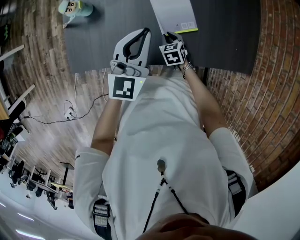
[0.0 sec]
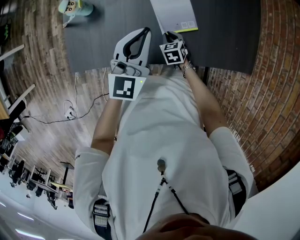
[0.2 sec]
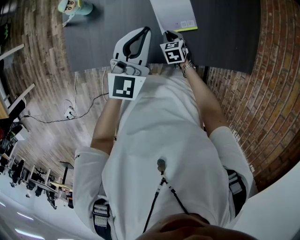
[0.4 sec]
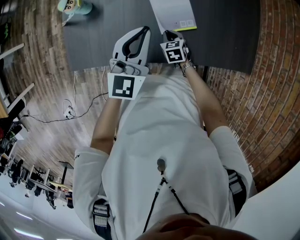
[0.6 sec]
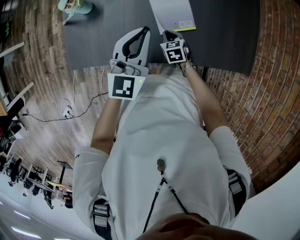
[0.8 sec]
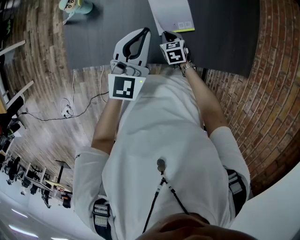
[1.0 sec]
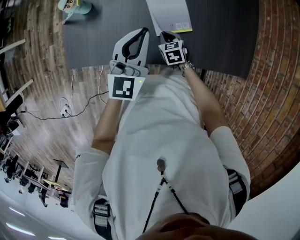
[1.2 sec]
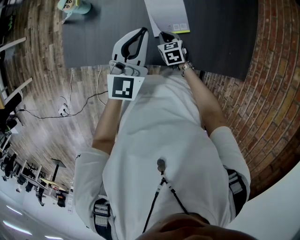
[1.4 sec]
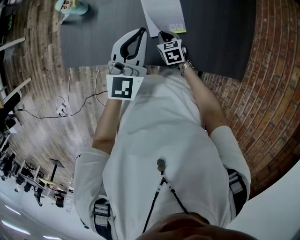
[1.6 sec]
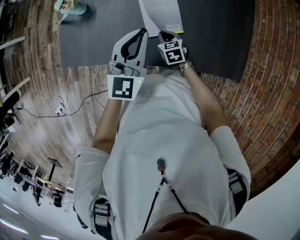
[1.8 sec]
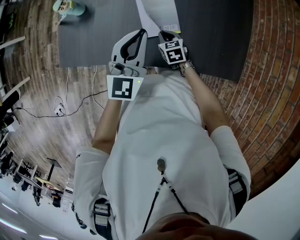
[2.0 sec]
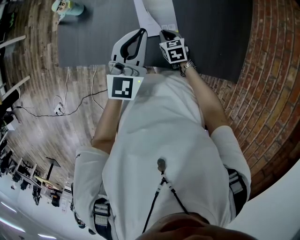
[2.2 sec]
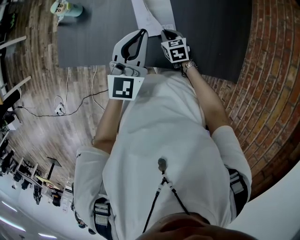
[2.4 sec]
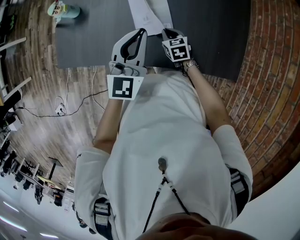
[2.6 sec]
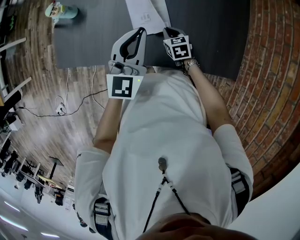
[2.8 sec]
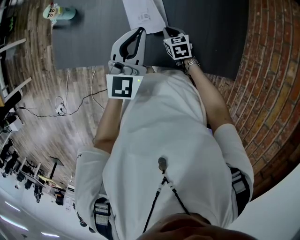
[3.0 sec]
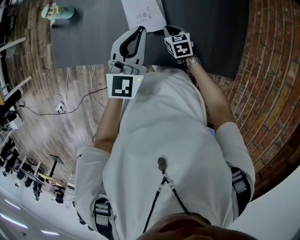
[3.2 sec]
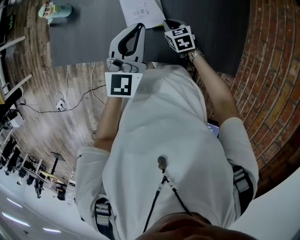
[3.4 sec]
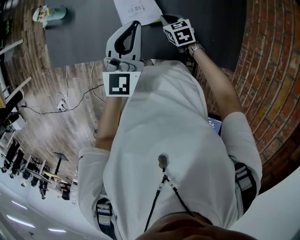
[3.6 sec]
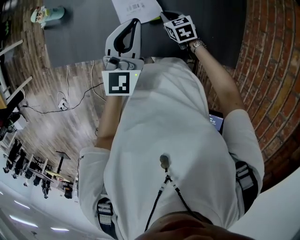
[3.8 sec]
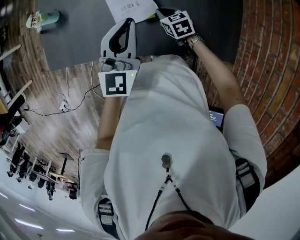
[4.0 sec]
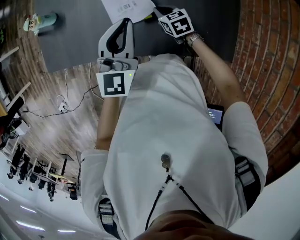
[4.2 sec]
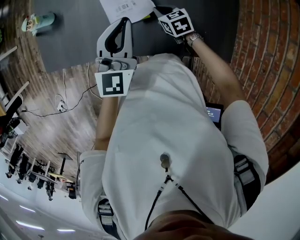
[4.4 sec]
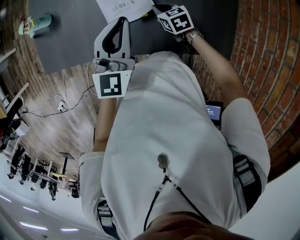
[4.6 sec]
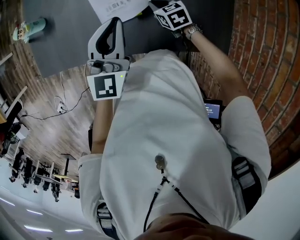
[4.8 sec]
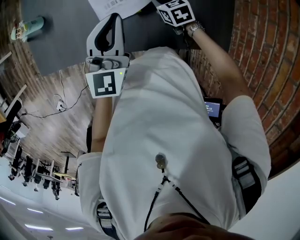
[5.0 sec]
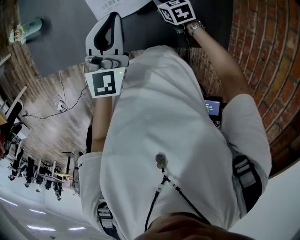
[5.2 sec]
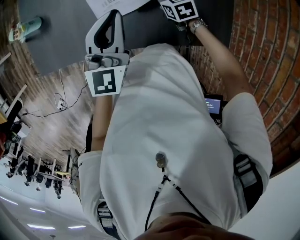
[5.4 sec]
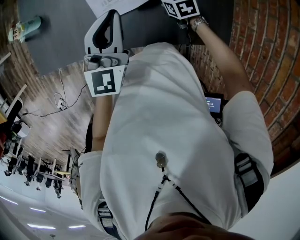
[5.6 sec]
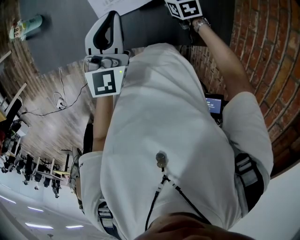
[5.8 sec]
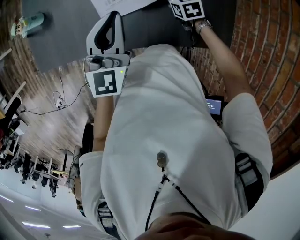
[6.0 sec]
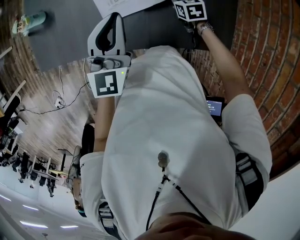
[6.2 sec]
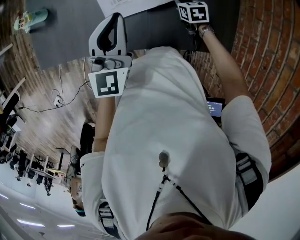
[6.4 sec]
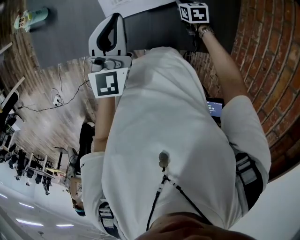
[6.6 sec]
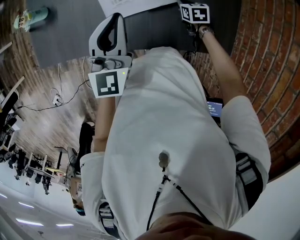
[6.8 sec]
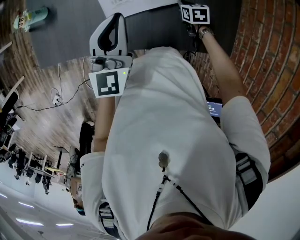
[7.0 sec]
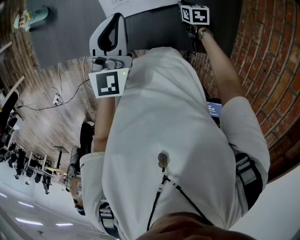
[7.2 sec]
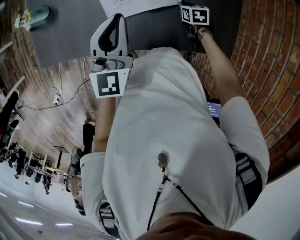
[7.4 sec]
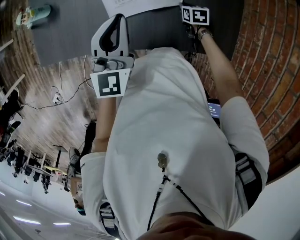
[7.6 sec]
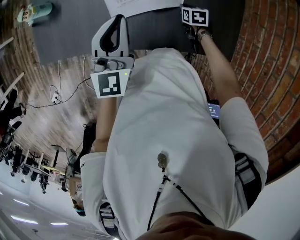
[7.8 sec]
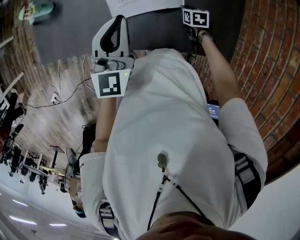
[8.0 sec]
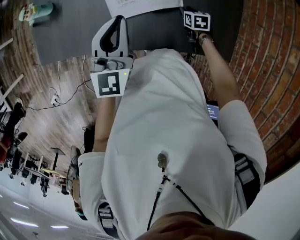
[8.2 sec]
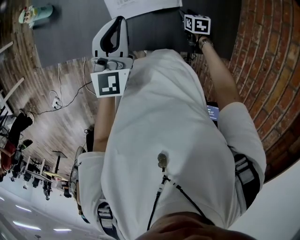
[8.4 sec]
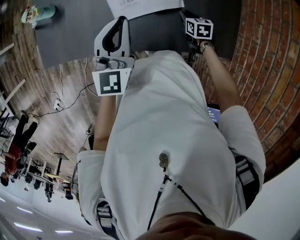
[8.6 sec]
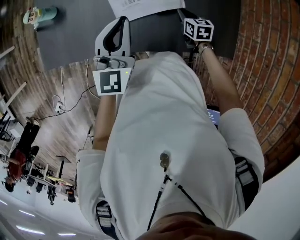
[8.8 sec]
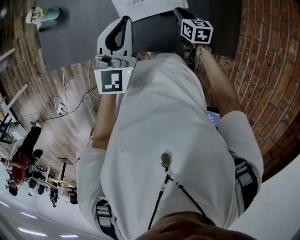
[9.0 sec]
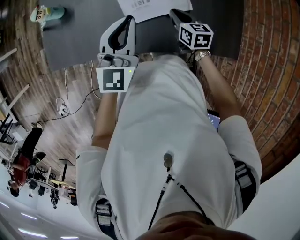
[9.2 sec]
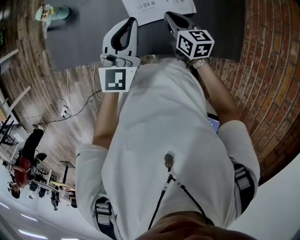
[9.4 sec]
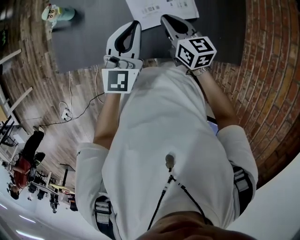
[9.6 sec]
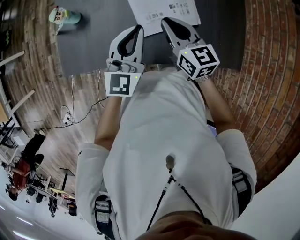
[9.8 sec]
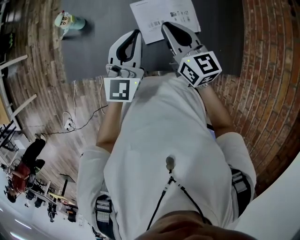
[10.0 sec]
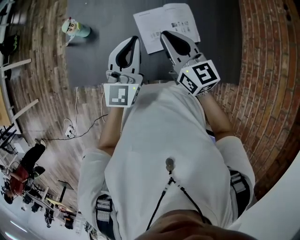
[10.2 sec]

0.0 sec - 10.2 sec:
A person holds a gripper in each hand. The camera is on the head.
0.0 sec - 1.4 sec: There are only small adjustments of the grippers.
1.4 sec - 3.0 sec: The grippers both shift to the right by some 15 cm.
3.0 sec - 4.4 sec: Both grippers travel together to the right, roughly 5 cm.
4.4 sec - 5.8 sec: The right gripper is displaced to the right by approximately 10 cm.
5.8 sec - 7.2 sec: The right gripper is displaced downward by about 5 cm.
7.2 sec - 8.8 sec: The right gripper goes roughly 10 cm upward and to the left, and opens, then closes once more. The left gripper heads to the left, covering approximately 5 cm.
8.8 sec - 10.2 sec: The right gripper travels upward and to the left by some 40 cm, and tilts its fingers roughly 40 degrees upward; the left gripper goes about 15 cm to the left and upward.

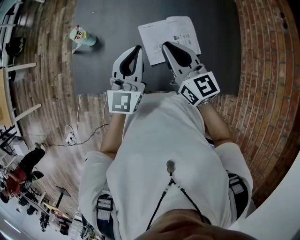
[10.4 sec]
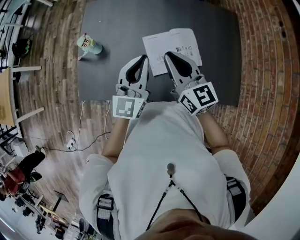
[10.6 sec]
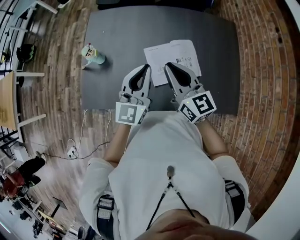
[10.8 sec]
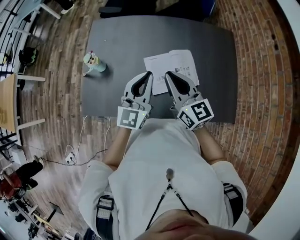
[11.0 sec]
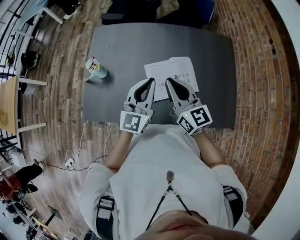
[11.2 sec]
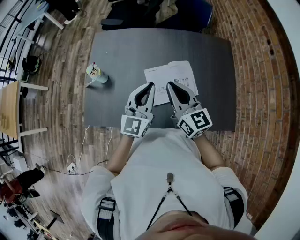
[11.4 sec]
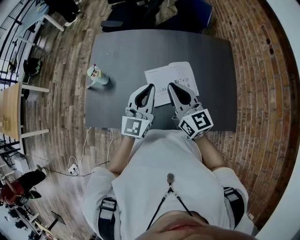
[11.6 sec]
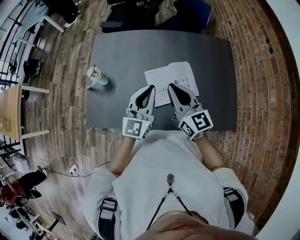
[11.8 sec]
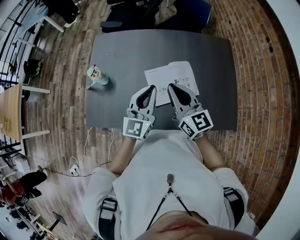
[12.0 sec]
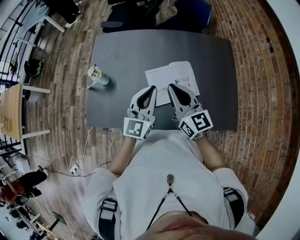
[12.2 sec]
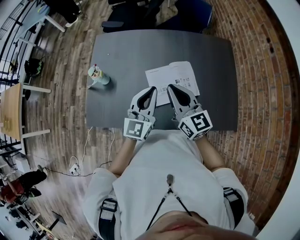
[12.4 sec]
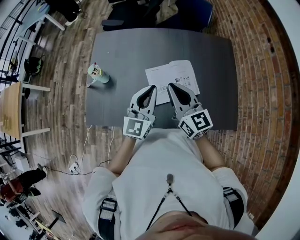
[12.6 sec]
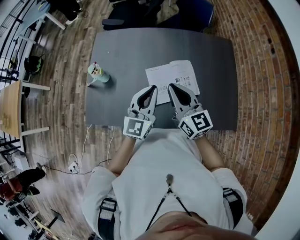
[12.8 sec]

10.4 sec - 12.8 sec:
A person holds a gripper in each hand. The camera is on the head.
10.4 sec - 11.6 sec: The right gripper shifts by roughly 5 cm.
11.6 sec - 12.8 sec: The grippers stay close to where they were, moving slightly.

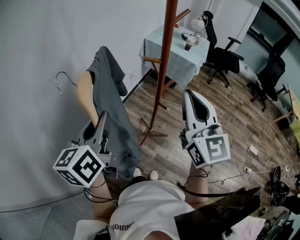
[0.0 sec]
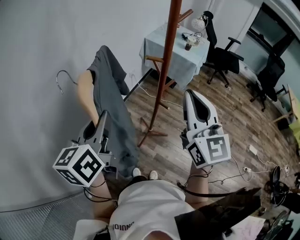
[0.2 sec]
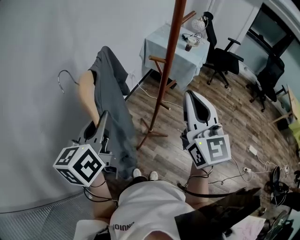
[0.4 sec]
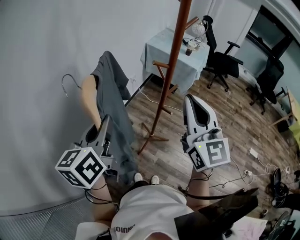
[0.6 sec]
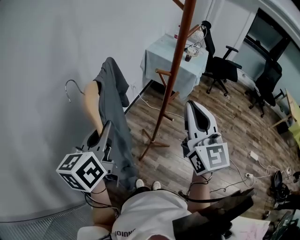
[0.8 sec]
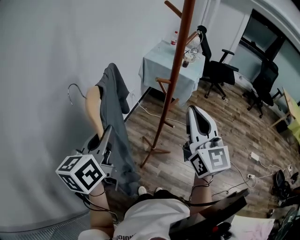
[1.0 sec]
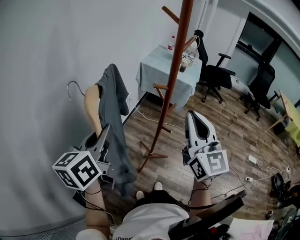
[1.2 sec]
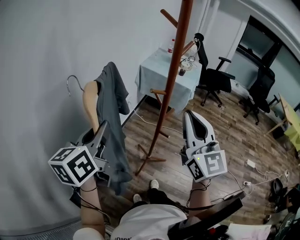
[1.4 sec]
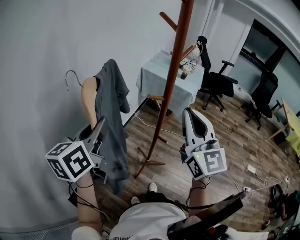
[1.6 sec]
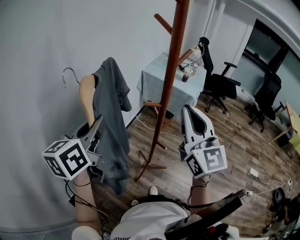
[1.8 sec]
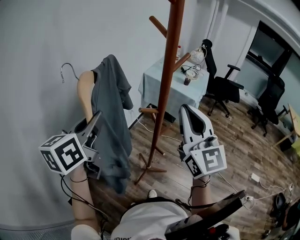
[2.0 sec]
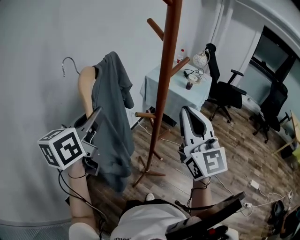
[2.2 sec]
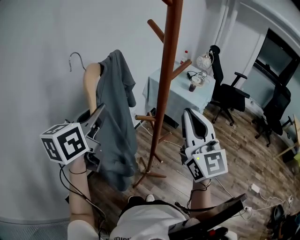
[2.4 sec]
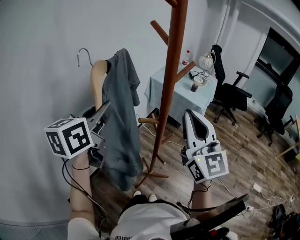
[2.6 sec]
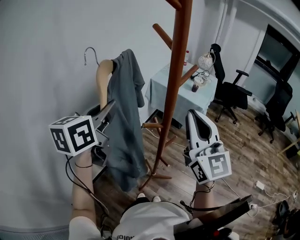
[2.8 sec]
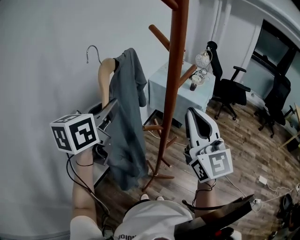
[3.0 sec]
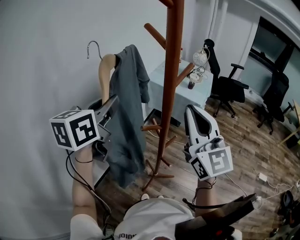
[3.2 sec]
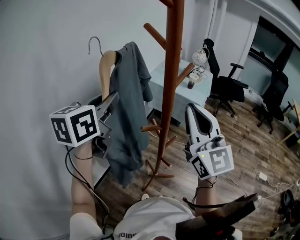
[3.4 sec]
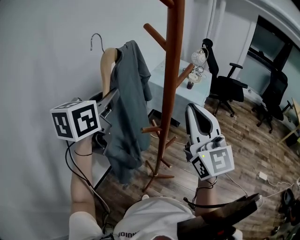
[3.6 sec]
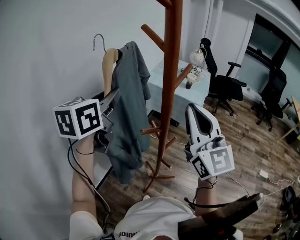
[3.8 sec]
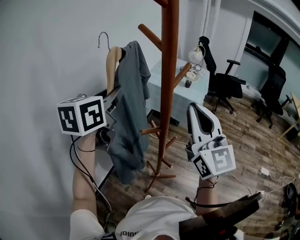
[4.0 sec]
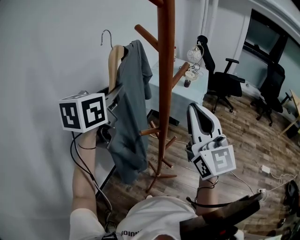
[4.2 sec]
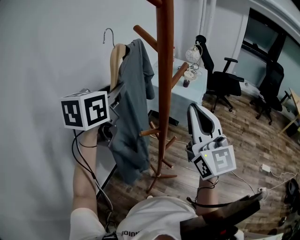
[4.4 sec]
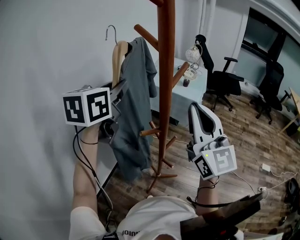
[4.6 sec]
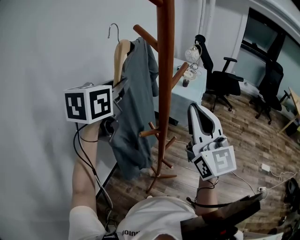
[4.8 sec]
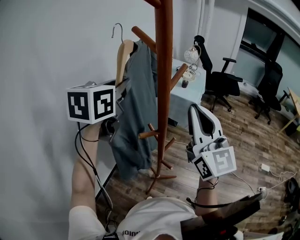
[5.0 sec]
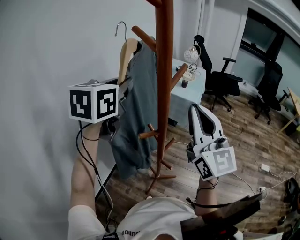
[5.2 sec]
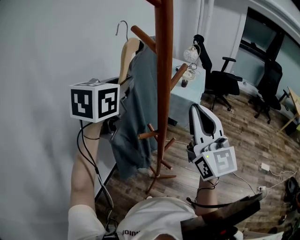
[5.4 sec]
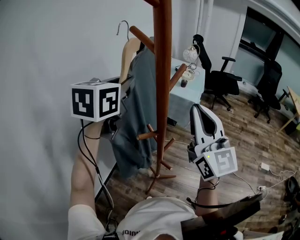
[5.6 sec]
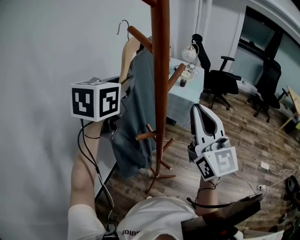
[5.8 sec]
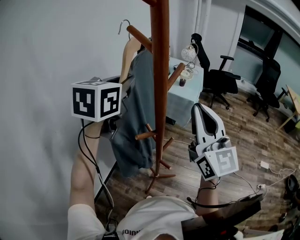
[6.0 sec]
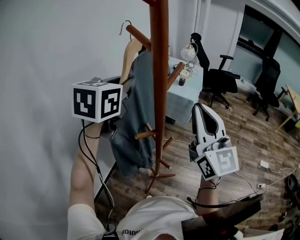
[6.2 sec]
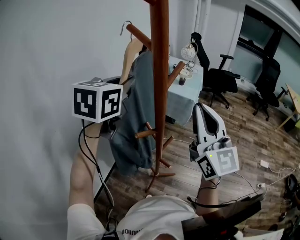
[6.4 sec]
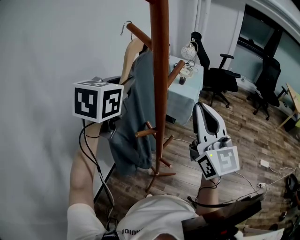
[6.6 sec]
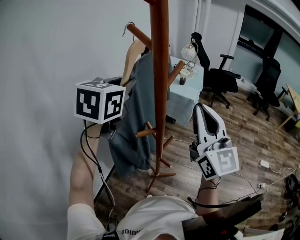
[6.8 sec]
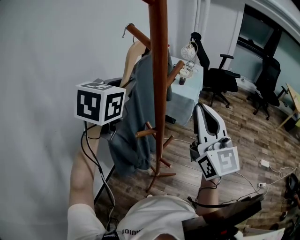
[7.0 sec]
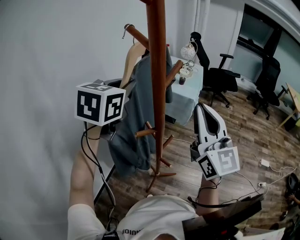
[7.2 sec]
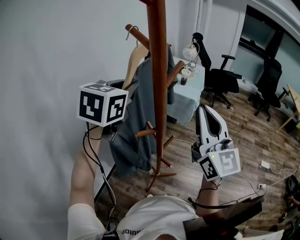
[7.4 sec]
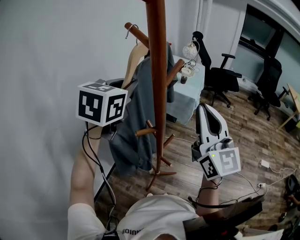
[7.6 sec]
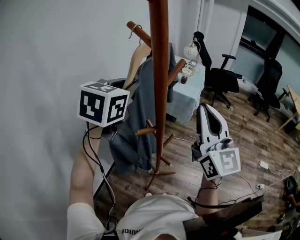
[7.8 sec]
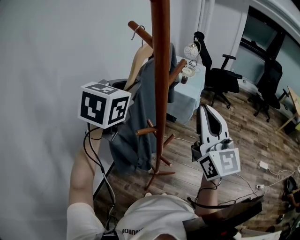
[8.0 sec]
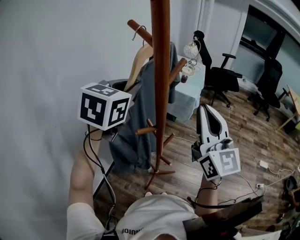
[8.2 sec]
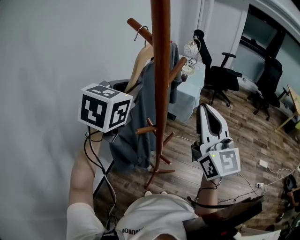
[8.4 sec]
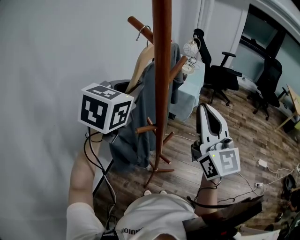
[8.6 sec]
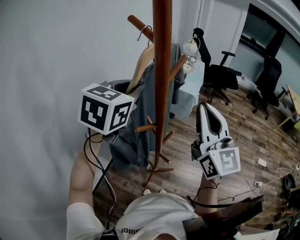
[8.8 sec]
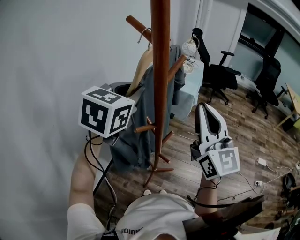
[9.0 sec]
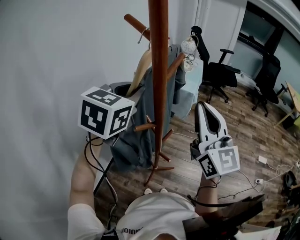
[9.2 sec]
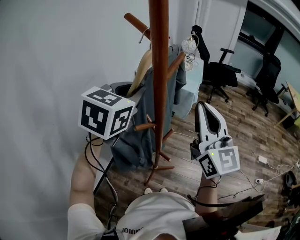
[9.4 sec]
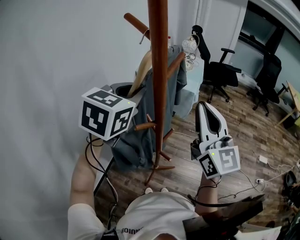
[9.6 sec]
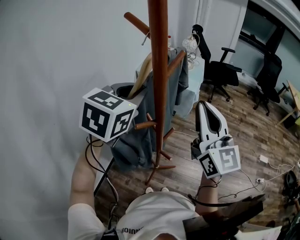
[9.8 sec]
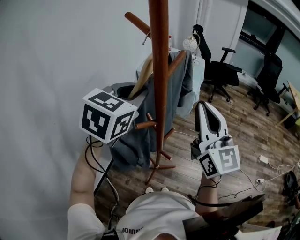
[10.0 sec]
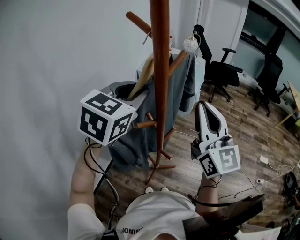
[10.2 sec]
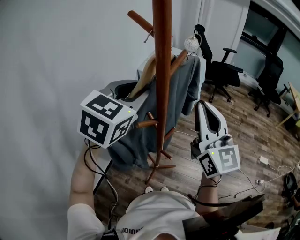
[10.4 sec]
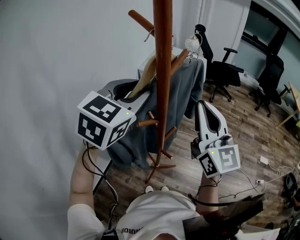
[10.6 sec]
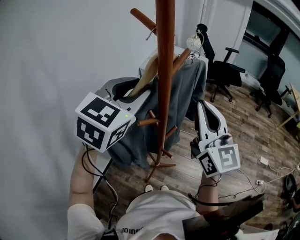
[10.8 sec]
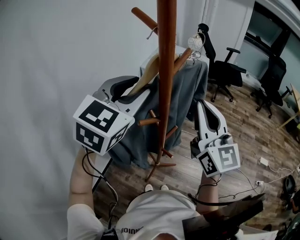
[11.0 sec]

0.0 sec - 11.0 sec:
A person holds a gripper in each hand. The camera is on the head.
0.0 sec - 1.6 sec: The left gripper is displaced forward and upward by about 10 cm. Meanwhile the right gripper changes place by some 5 cm.
1.6 sec - 3.2 sec: The left gripper goes roughly 15 cm forward and upward. The right gripper shifts approximately 10 cm forward.
3.2 sec - 4.8 sec: The left gripper goes approximately 5 cm forward.
4.8 sec - 7.8 sec: The grippers move only a little.
7.8 sec - 9.4 sec: The grippers make only small movements.
9.4 sec - 11.0 sec: The left gripper opens up.
